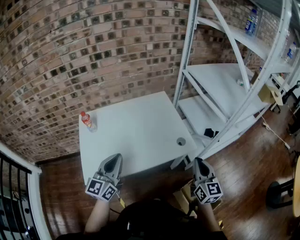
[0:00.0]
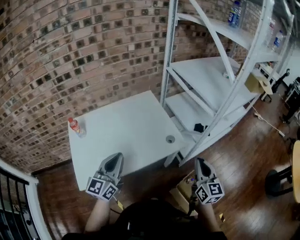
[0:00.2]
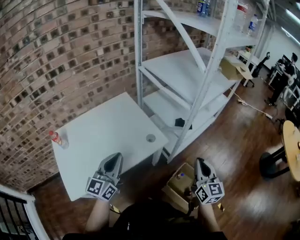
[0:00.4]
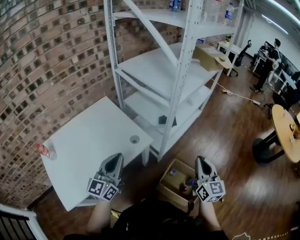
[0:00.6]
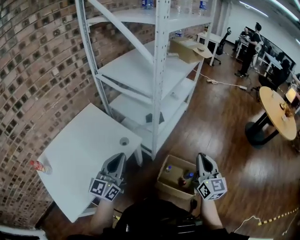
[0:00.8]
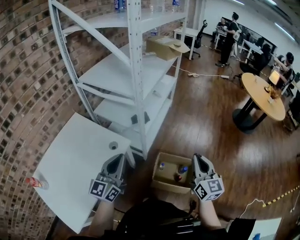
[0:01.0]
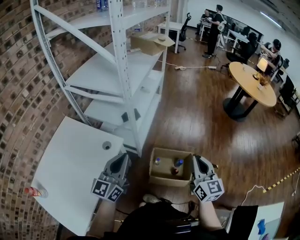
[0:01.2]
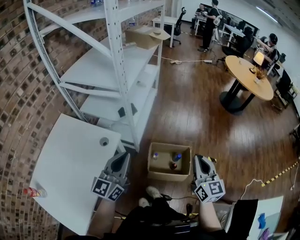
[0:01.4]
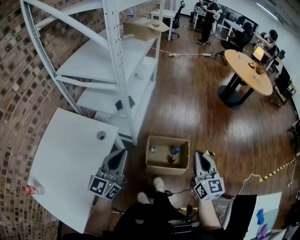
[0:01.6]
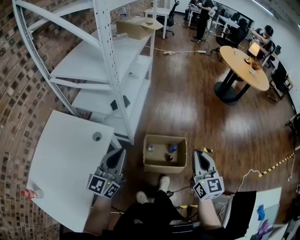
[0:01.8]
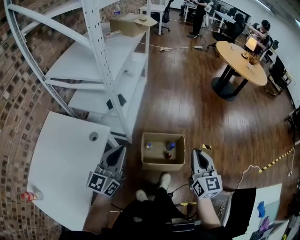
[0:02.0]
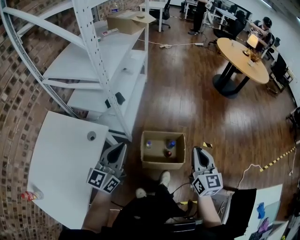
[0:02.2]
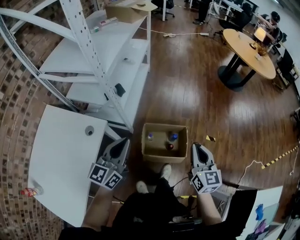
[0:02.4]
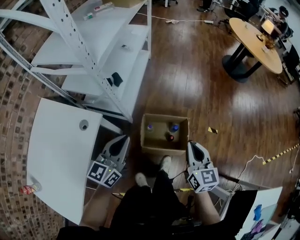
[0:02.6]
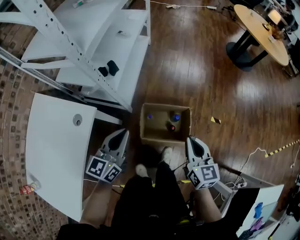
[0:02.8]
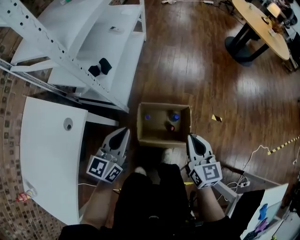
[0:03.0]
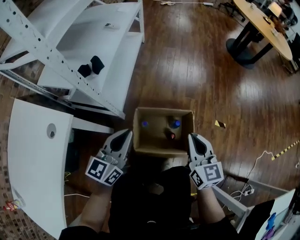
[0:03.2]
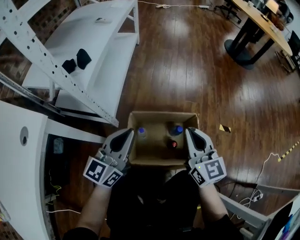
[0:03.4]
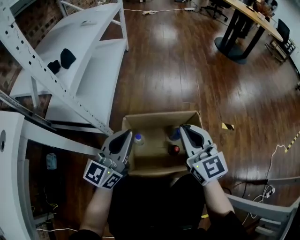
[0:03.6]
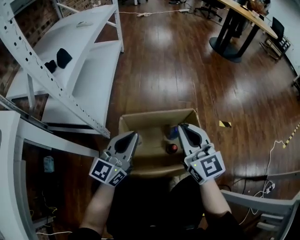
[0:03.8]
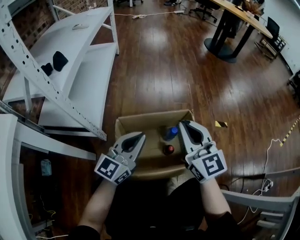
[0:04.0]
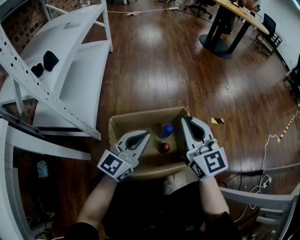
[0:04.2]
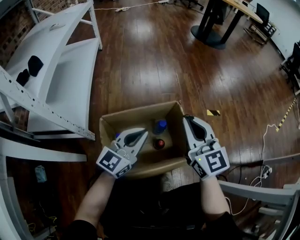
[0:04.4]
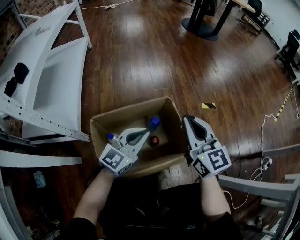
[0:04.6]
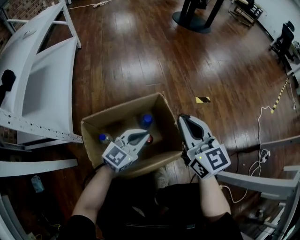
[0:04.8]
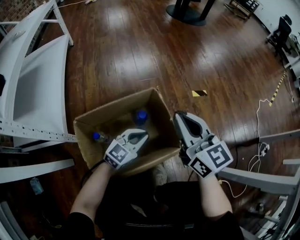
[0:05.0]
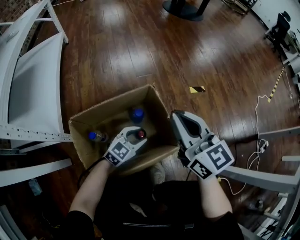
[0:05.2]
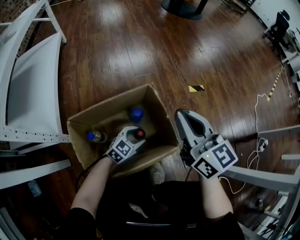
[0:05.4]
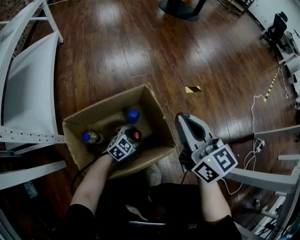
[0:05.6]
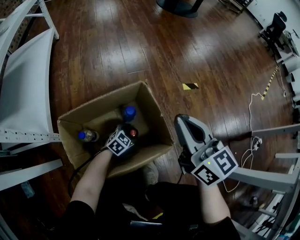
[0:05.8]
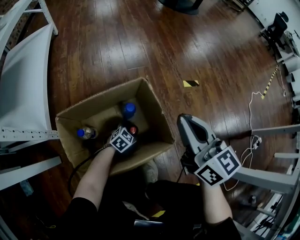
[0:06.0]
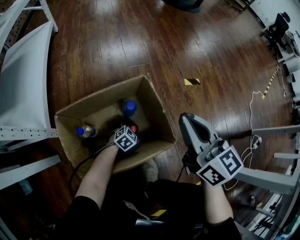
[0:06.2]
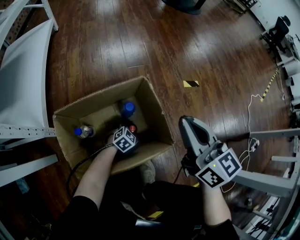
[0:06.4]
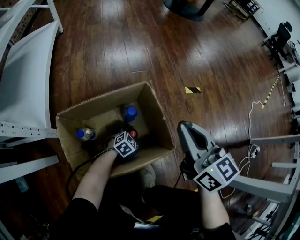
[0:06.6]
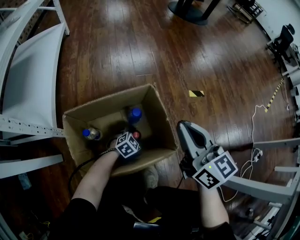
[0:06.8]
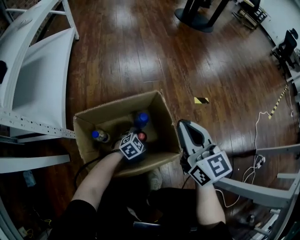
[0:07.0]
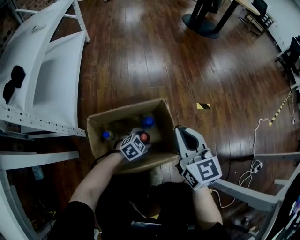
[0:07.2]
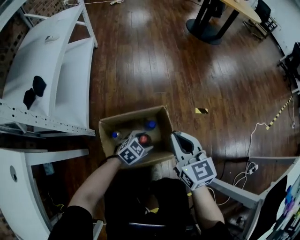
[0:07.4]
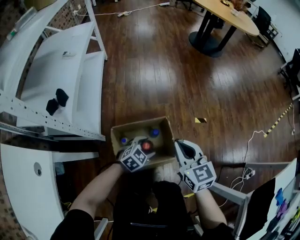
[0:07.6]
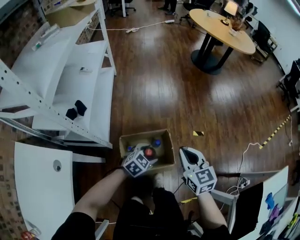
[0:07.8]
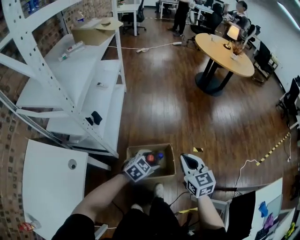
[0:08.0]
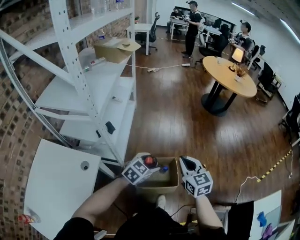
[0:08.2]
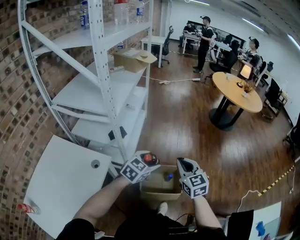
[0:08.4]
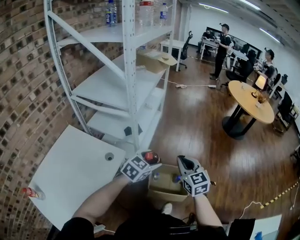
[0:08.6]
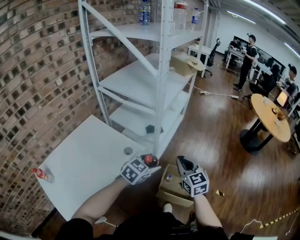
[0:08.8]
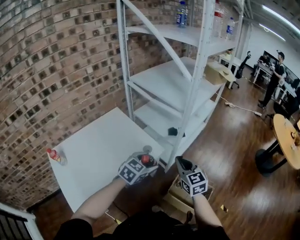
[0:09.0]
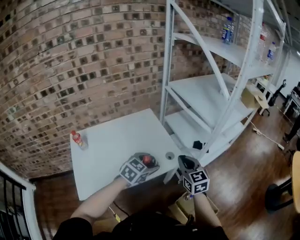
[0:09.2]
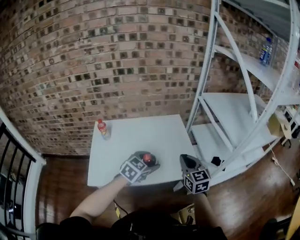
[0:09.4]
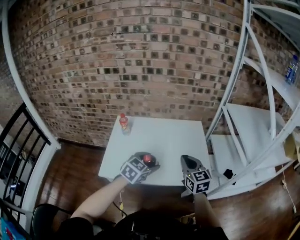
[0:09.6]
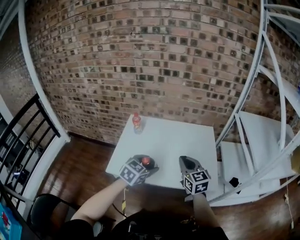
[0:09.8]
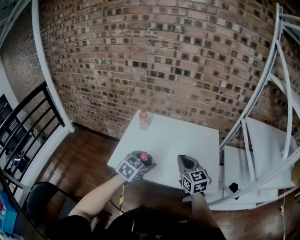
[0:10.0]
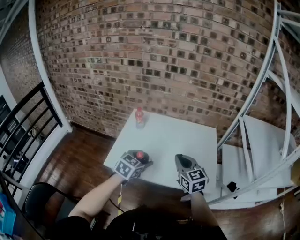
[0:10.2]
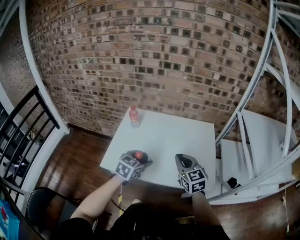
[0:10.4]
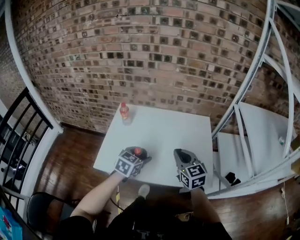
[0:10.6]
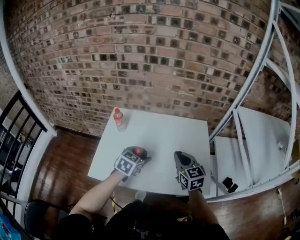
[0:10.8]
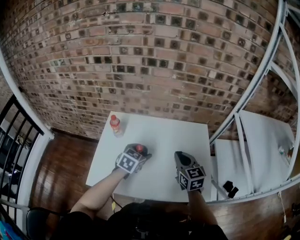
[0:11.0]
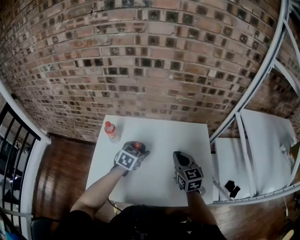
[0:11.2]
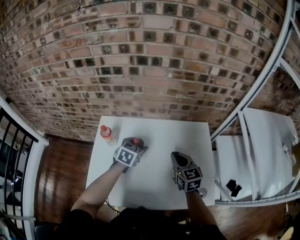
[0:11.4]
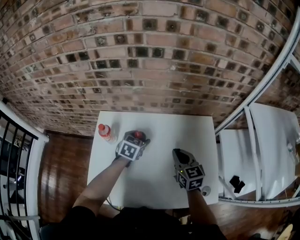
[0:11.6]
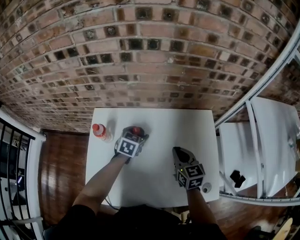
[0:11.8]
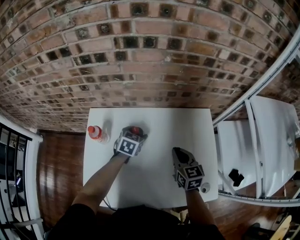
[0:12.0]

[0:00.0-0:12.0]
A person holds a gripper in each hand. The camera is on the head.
0.0 to 1.6 s: The right gripper changes place by roughly 30 cm, and changes its angle by roughly 50 degrees; the left gripper shifts by roughly 35 cm, and swivels some 50 degrees.
1.6 to 3.0 s: The right gripper moves downward and forward, some 25 cm. The left gripper heads downward, forward and to the right, covering roughly 25 cm.
3.0 to 4.4 s: The right gripper is displaced downward by about 30 cm, and swivels roughly 20 degrees, while the left gripper heads downward and to the right, covering roughly 40 cm, and rotates some 40 degrees.
4.4 to 6.0 s: The left gripper travels downward by about 35 cm, angles its fingers downward, by about 50 degrees, and opens up; the right gripper is displaced to the right and downward by roughly 10 cm, and rotates approximately 20 degrees.
6.0 to 7.6 s: The left gripper shifts approximately 50 cm upward, while the right gripper moves upward, about 25 cm, and swivels roughly 20 degrees.
7.6 to 9.0 s: Both grippers are carried some 40 cm. The left gripper turns by approximately 60 degrees, while the right gripper turns by approximately 50 degrees.
9.0 to 10.4 s: The left gripper changes place by about 35 cm, and rotates some 70 degrees. Meanwhile the right gripper changes place by about 35 cm, and turns by some 60 degrees.
10.4 to 12.0 s: Both grippers travel together forward and downward, approximately 35 cm. The right gripper changes its angle by approximately 30 degrees.

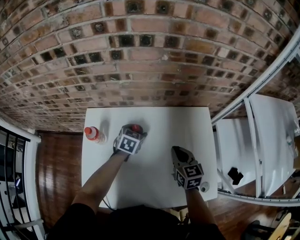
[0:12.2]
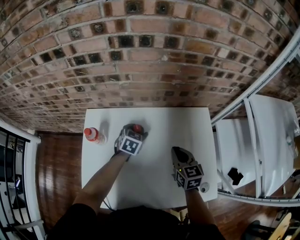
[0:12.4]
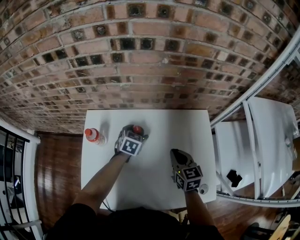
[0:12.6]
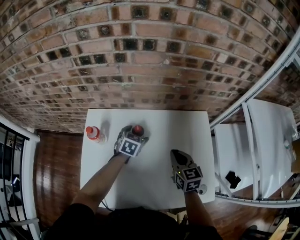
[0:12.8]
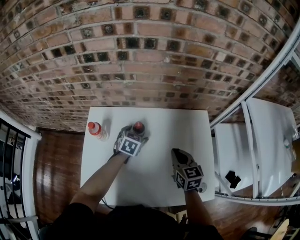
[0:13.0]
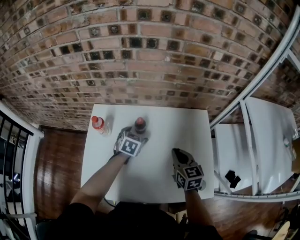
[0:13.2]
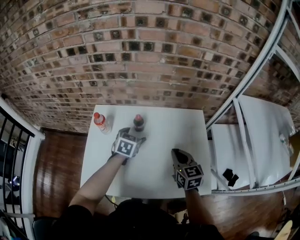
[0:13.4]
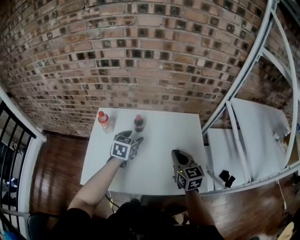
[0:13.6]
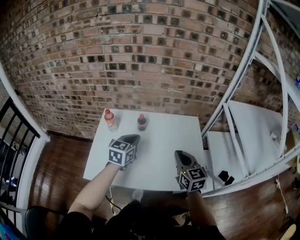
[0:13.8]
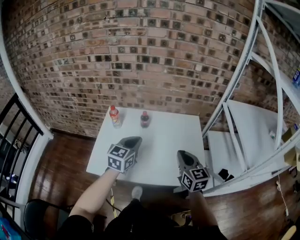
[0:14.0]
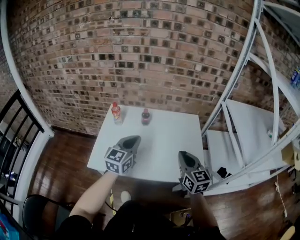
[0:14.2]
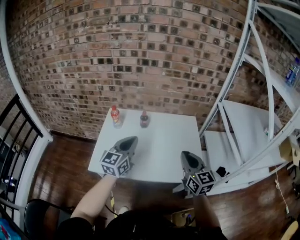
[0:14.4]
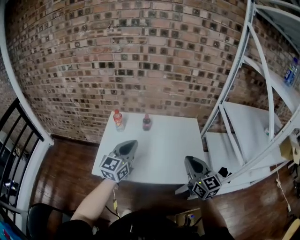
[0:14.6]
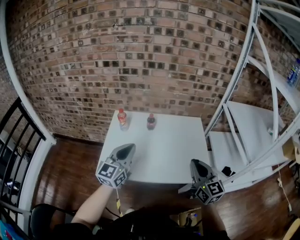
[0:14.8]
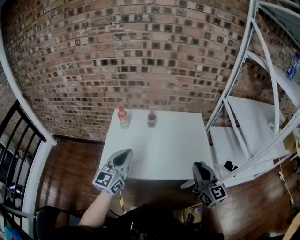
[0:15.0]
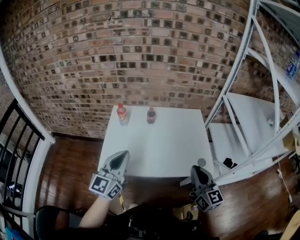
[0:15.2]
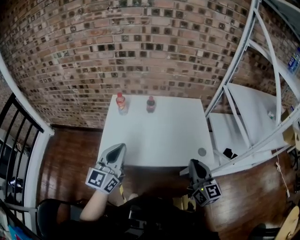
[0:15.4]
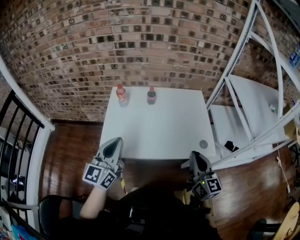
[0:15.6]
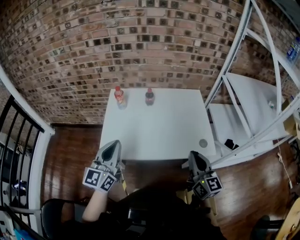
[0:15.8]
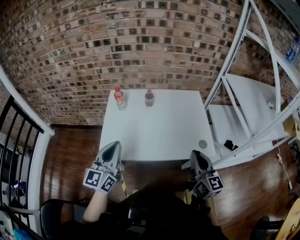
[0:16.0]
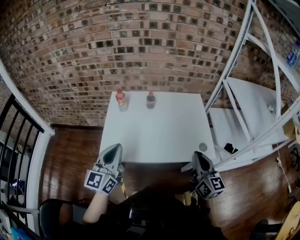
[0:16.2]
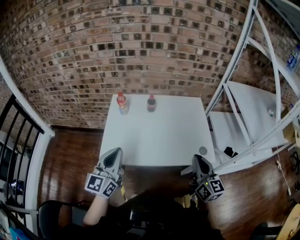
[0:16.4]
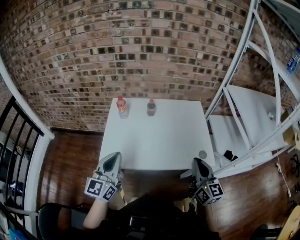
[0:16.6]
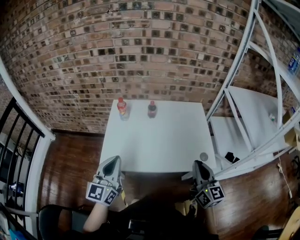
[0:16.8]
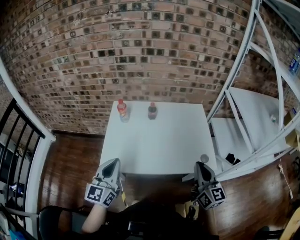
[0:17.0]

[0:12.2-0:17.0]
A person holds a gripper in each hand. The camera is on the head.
12.2 to 13.8 s: The two grippers go about 25 cm backward and upward. The left gripper swivels about 30 degrees, and closes up.
13.8 to 15.4 s: The right gripper shifts roughly 20 cm backward, while the left gripper goes roughly 25 cm backward and to the left, and changes its angle by about 20 degrees.
15.4 to 17.0 s: There are only small adjustments of the grippers.

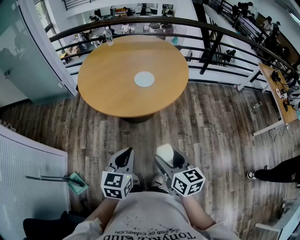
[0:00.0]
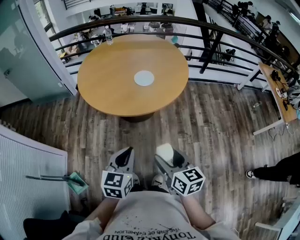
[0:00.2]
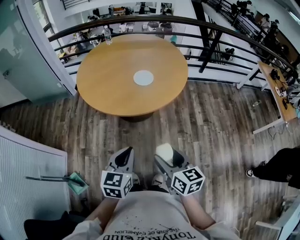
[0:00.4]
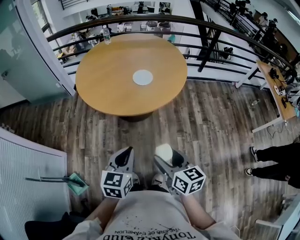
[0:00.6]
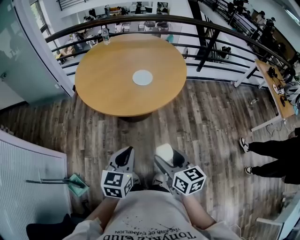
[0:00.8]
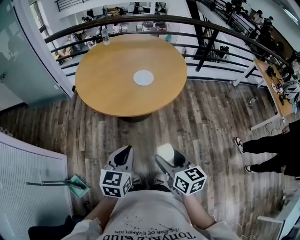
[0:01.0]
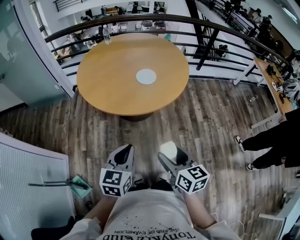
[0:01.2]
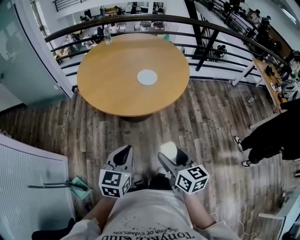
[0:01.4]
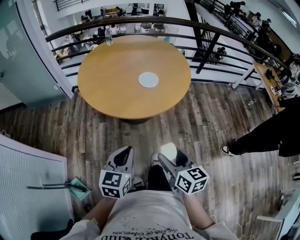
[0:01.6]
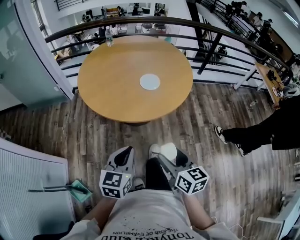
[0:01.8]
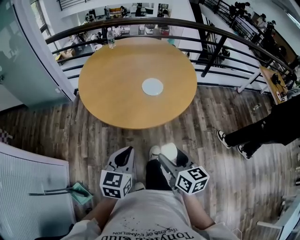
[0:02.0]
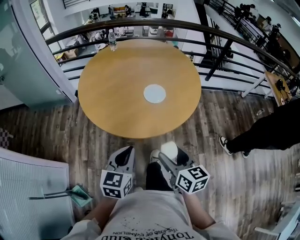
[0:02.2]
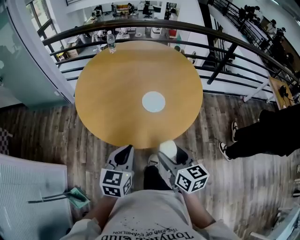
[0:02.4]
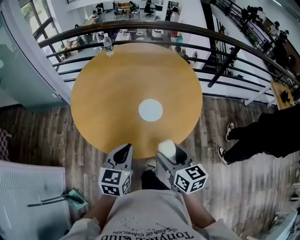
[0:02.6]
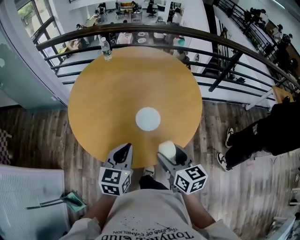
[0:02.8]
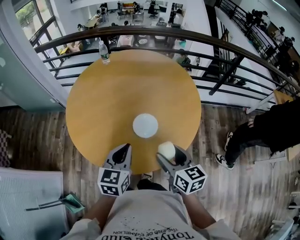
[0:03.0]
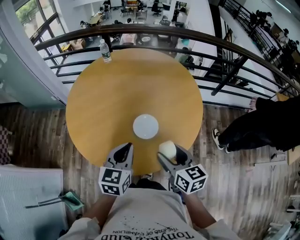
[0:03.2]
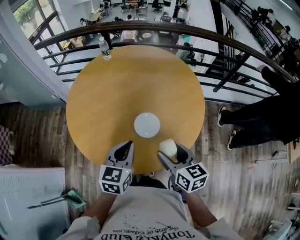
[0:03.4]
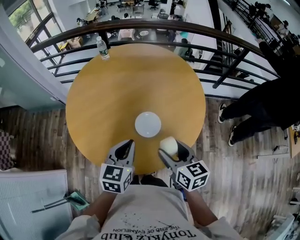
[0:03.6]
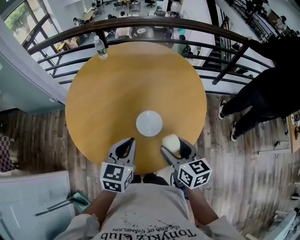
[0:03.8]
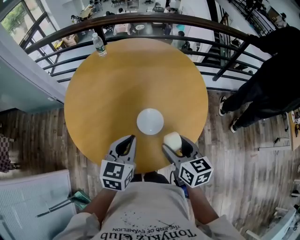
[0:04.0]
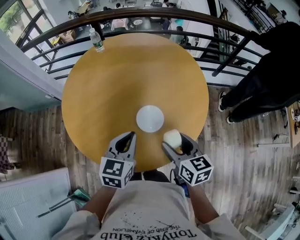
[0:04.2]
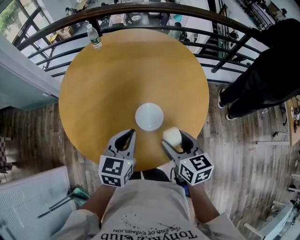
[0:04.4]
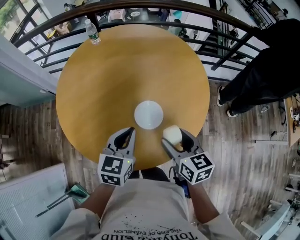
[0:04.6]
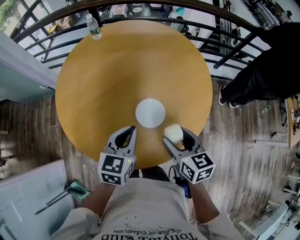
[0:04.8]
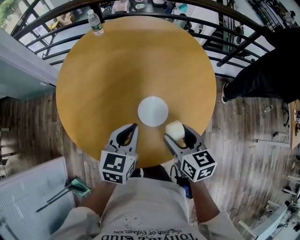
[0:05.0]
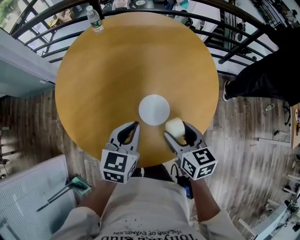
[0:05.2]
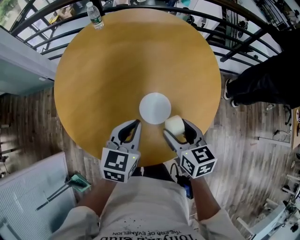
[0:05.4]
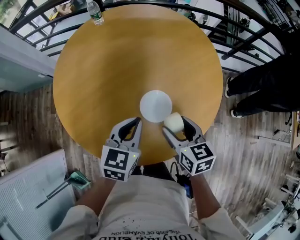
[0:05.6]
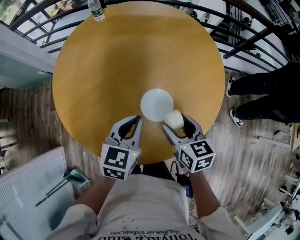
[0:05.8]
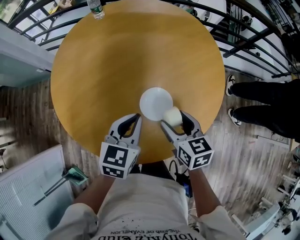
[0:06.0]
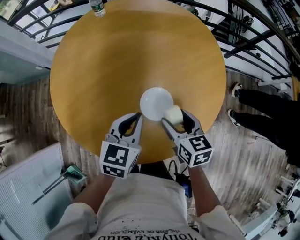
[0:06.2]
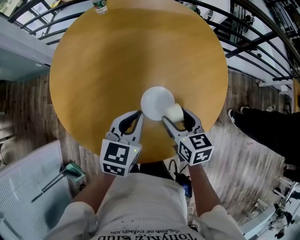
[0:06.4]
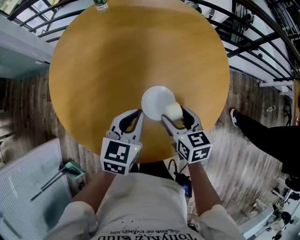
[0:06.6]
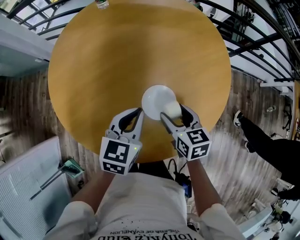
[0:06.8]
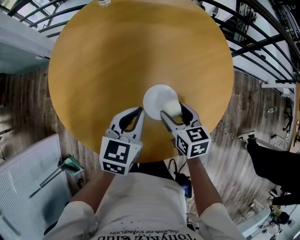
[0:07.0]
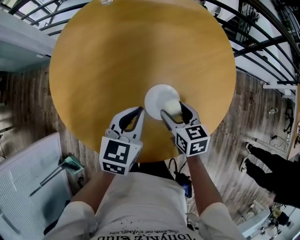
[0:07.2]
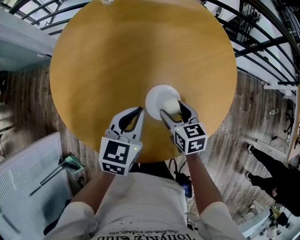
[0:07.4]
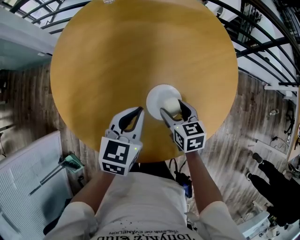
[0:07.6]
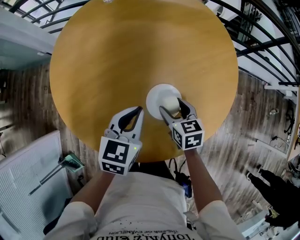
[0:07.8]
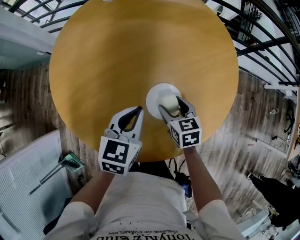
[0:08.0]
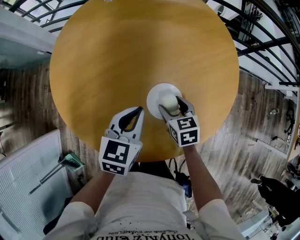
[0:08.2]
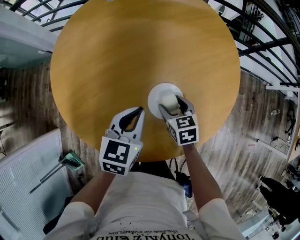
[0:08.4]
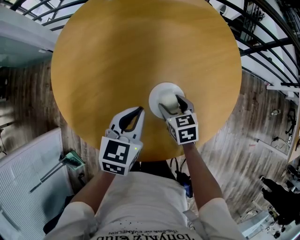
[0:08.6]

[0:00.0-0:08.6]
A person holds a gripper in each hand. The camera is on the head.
0.0 to 1.4 s: The grippers both shift to the left by some 5 cm.
1.4 to 2.8 s: The two grippers go about 35 cm forward.
2.8 to 4.4 s: The grippers both shift forward by roughly 10 cm.
4.4 to 5.8 s: The right gripper travels downward and forward by some 10 cm; the left gripper moves downward, about 5 cm.
5.8 to 7.2 s: The right gripper shifts approximately 10 cm downward and forward.
7.2 to 8.6 s: The right gripper is displaced downward by approximately 5 cm.
